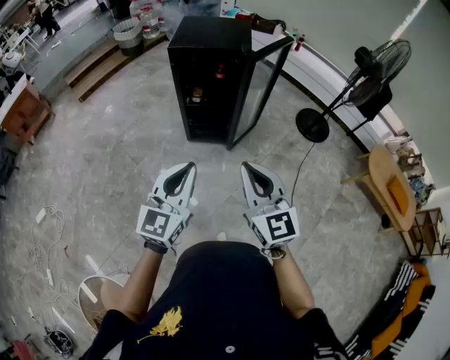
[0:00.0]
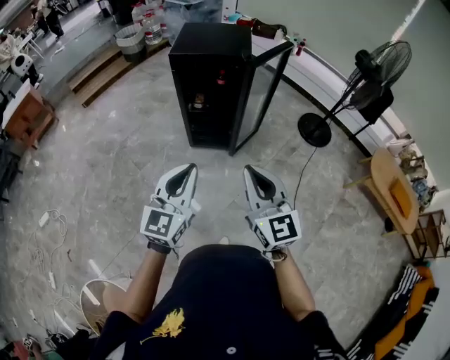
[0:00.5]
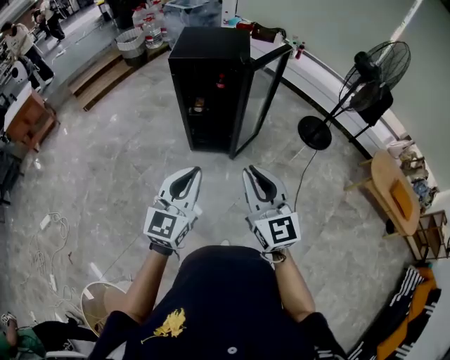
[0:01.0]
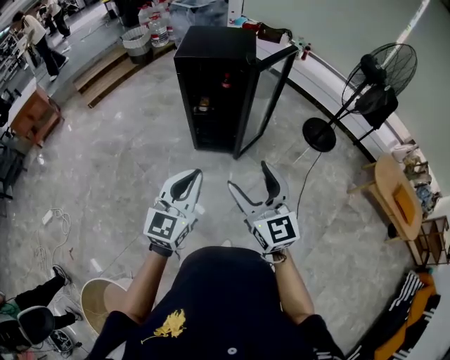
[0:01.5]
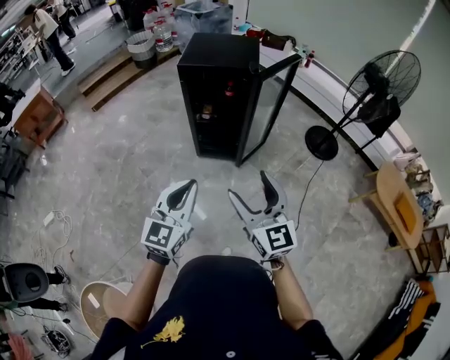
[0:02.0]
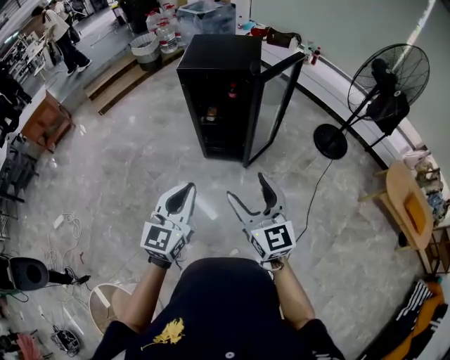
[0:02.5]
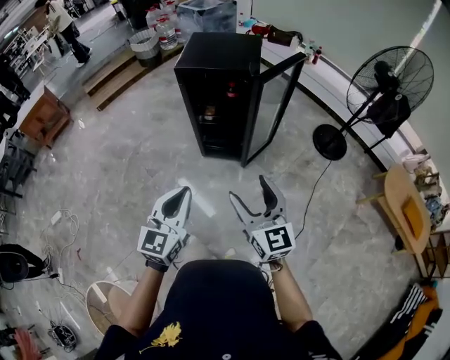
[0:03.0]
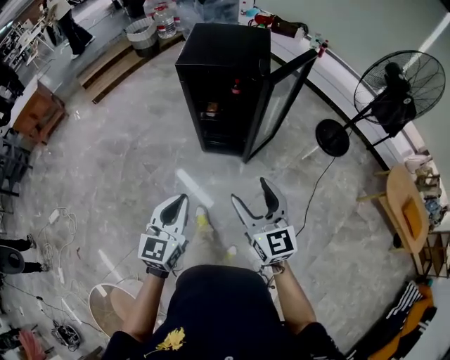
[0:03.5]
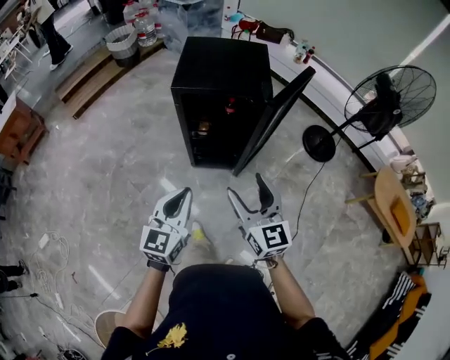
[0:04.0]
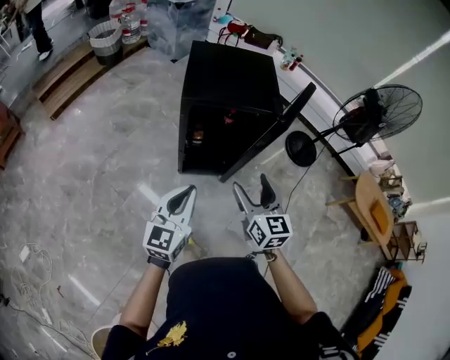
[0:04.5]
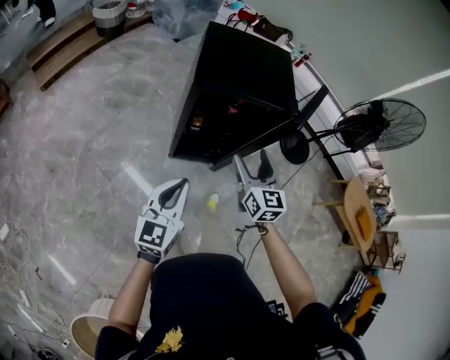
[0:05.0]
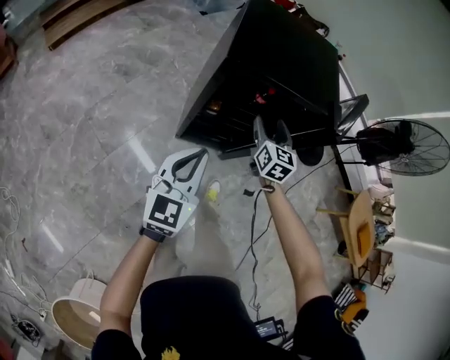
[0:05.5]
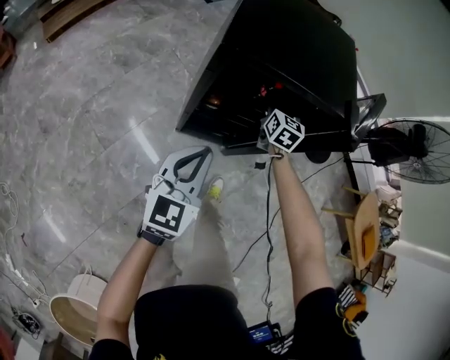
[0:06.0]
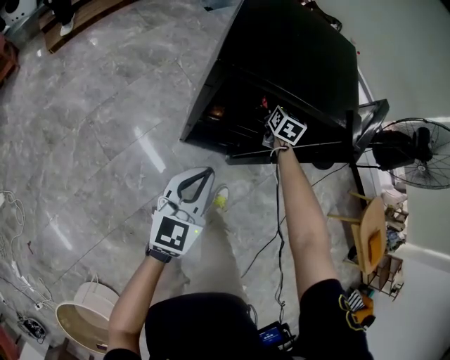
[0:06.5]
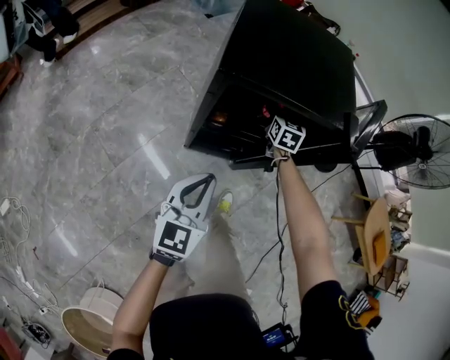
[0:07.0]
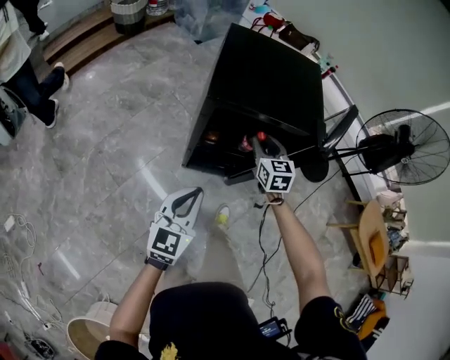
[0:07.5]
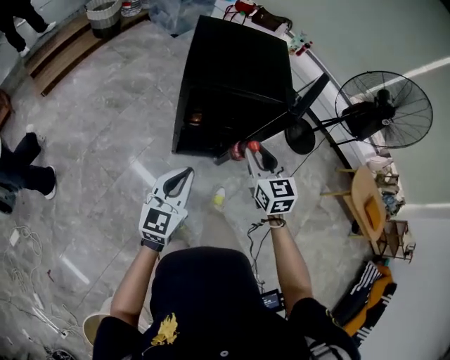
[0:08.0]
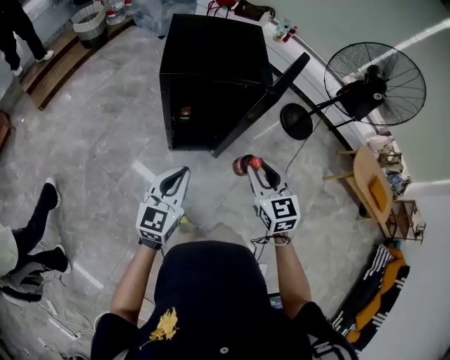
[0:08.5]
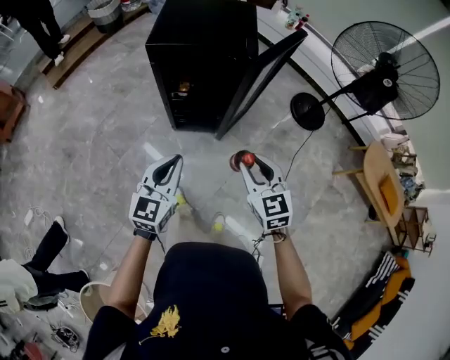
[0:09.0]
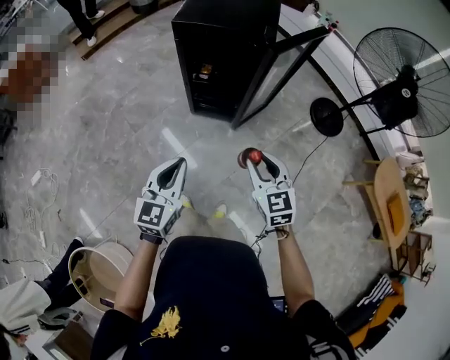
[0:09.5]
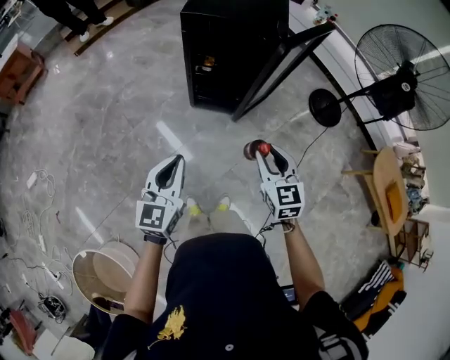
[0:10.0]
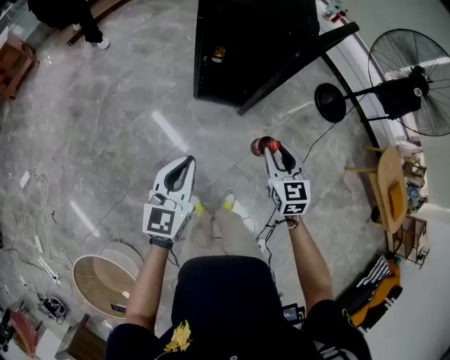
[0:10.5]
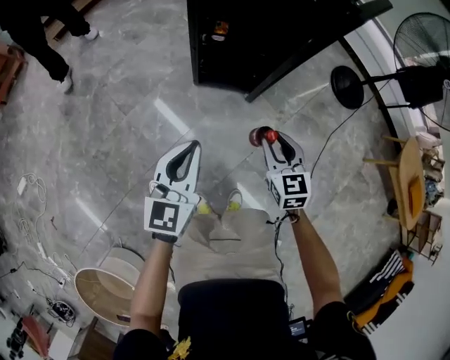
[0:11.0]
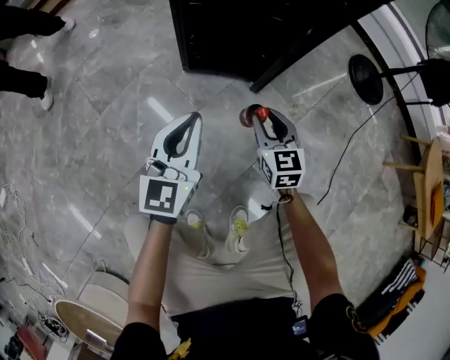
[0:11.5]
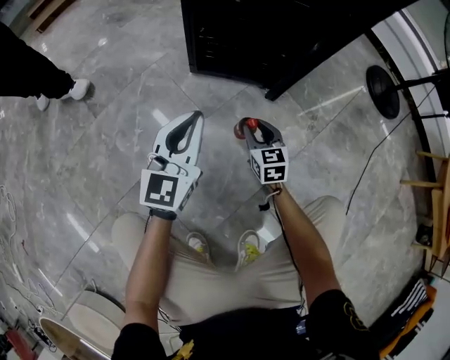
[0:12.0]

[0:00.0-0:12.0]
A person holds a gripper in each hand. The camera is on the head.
0:00.0 to 0:02.0: The right gripper opens.
0:02.0 to 0:04.0: Both grippers move forward, about 25 cm.
0:04.0 to 0:06.0: The left gripper moves forward and downward, roughly 30 cm. Meanwhile the right gripper heads forward and downward, covering approximately 50 cm, and swivels some 30 degrees.
0:06.0 to 0:08.0: The right gripper shifts roughly 35 cm backward and upward, and closes up, while the left gripper goes roughly 15 cm upward and backward.
0:08.0 to 0:10.0: The left gripper heads backward, covering about 25 cm, while the right gripper travels backward and to the right by about 30 cm.
0:10.0 to 0:12.0: The two grippers go roughly 70 cm downward.

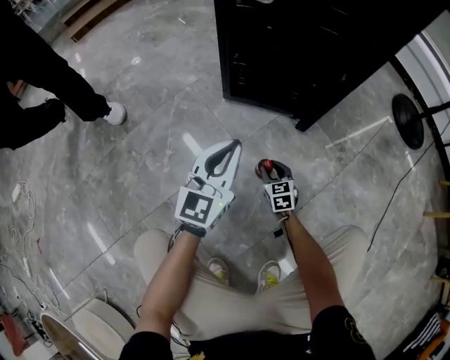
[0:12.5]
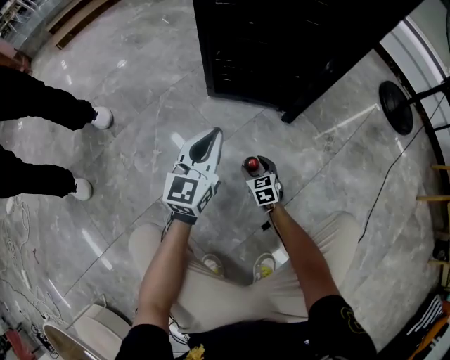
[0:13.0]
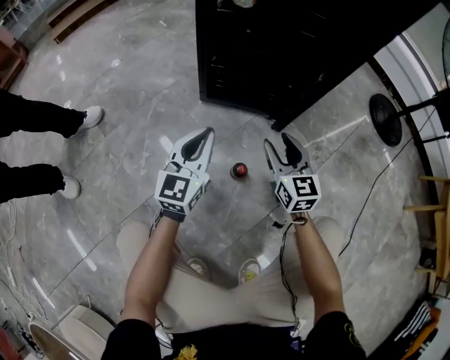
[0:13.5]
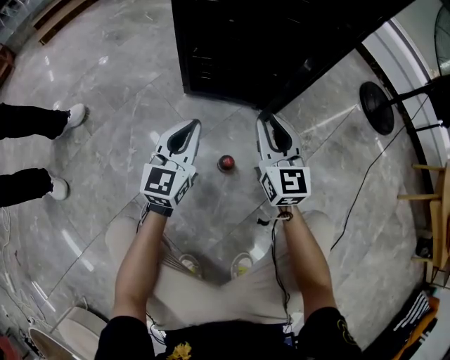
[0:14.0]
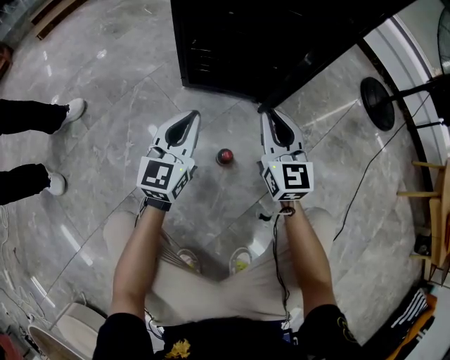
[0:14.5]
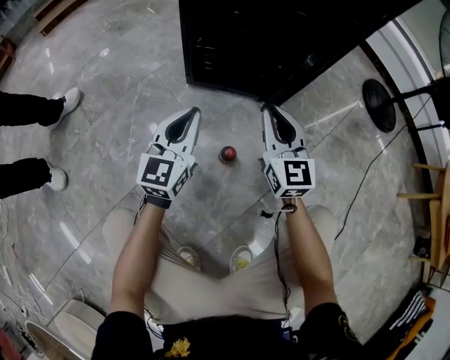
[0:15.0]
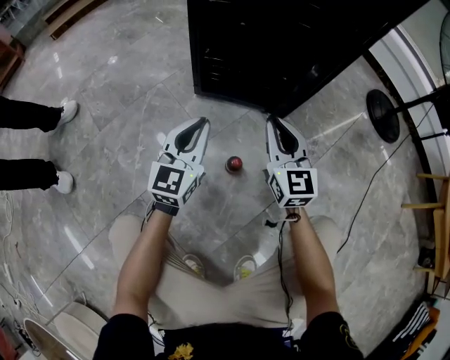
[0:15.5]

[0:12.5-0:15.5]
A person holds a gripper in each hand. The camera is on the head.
0:12.5 to 0:14.0: The right gripper moves upward, about 30 cm, tilts its fingers roughly 30 degrees upward, and opens and closes again.
0:14.0 to 0:15.5: The grippers make only small movements.

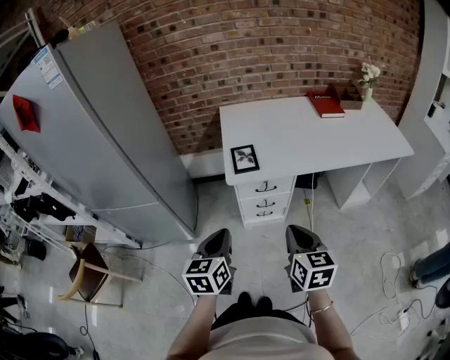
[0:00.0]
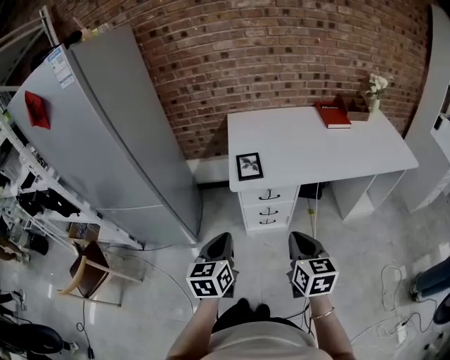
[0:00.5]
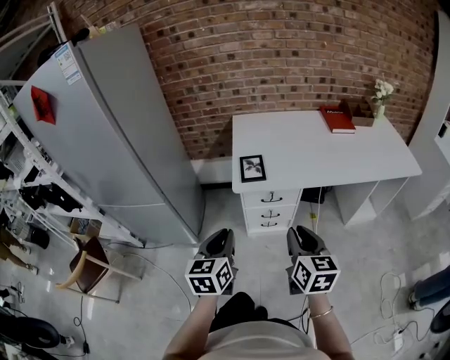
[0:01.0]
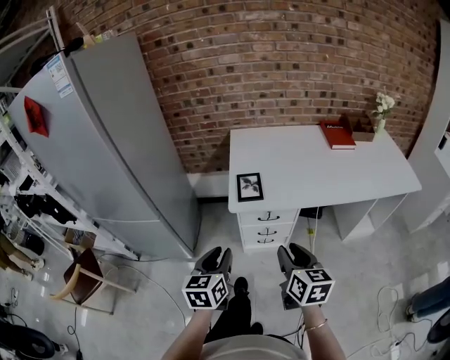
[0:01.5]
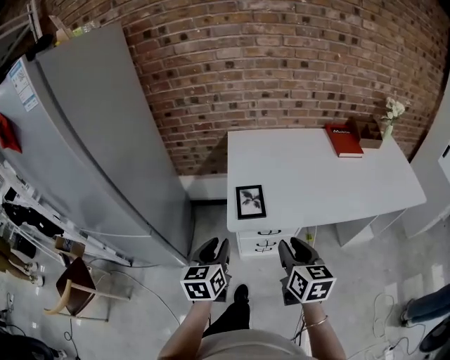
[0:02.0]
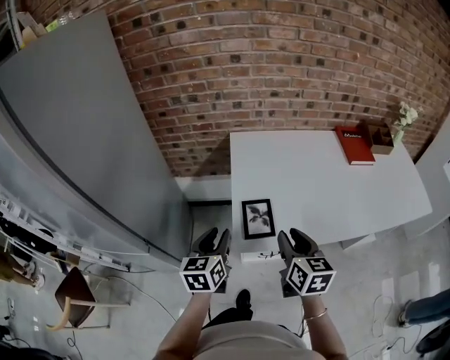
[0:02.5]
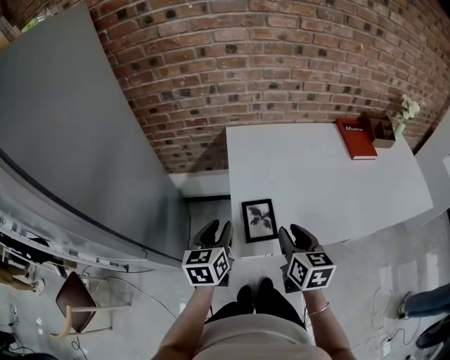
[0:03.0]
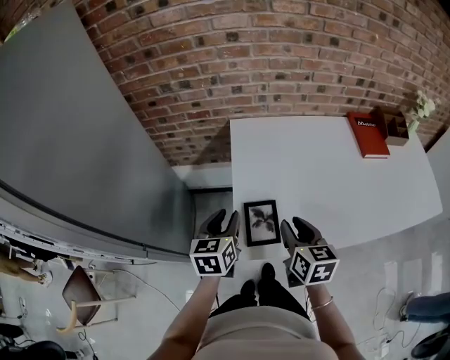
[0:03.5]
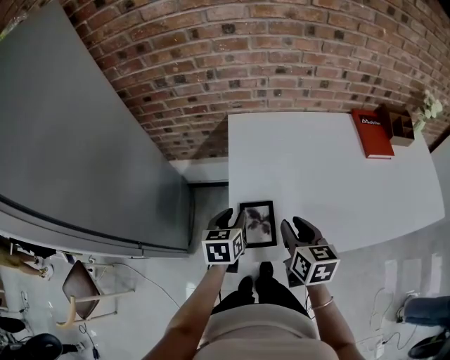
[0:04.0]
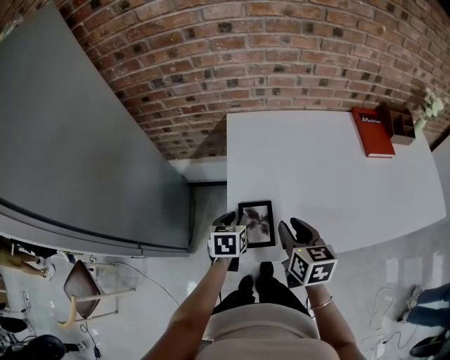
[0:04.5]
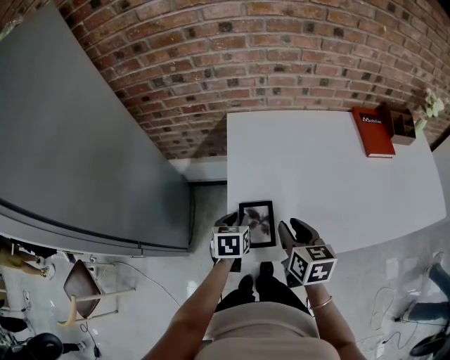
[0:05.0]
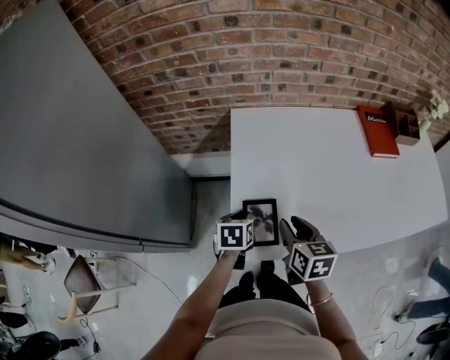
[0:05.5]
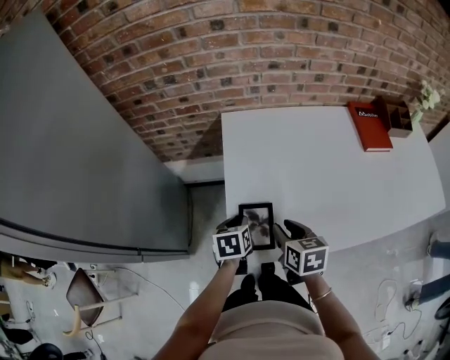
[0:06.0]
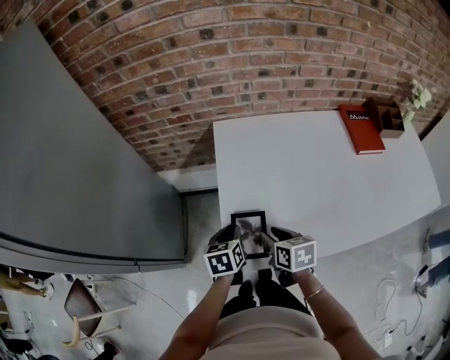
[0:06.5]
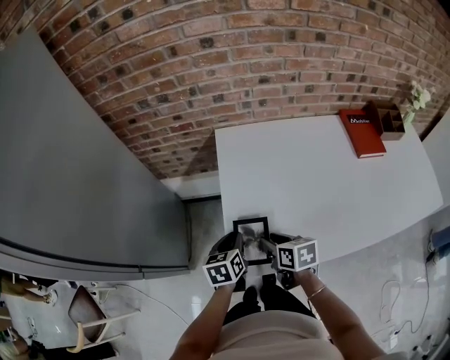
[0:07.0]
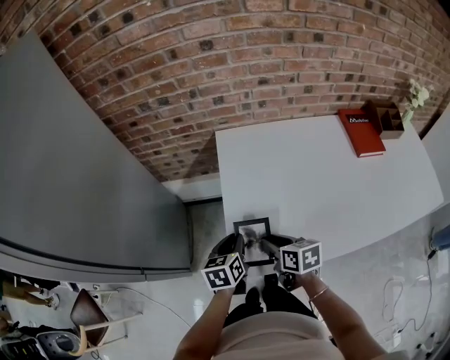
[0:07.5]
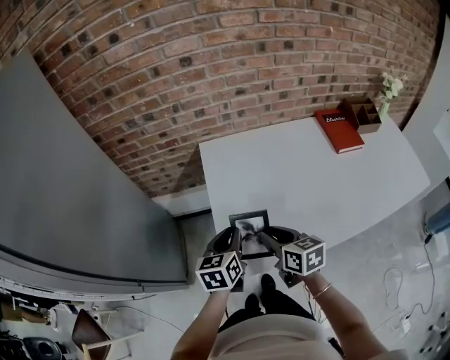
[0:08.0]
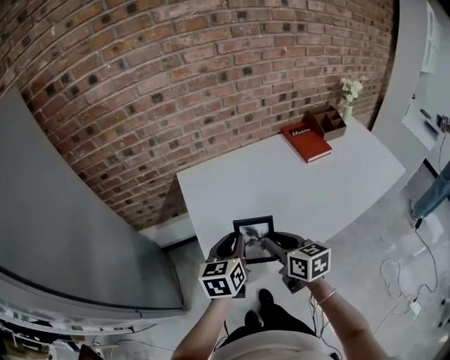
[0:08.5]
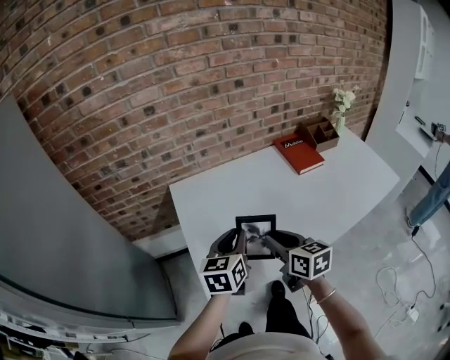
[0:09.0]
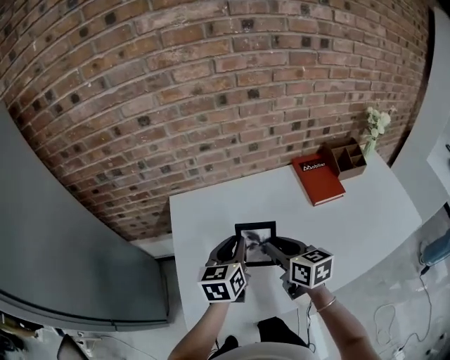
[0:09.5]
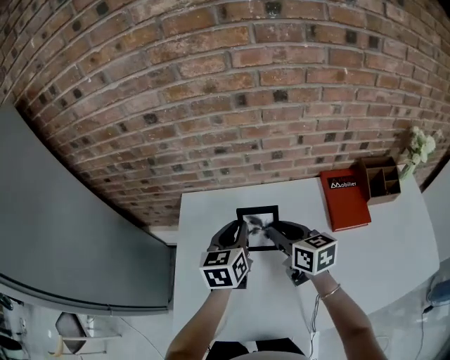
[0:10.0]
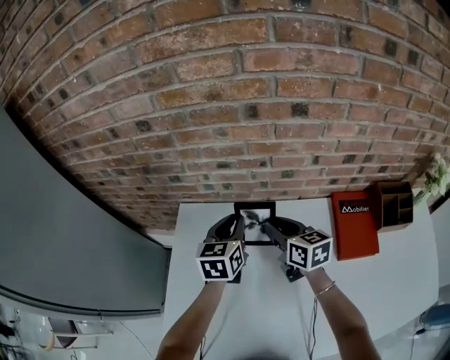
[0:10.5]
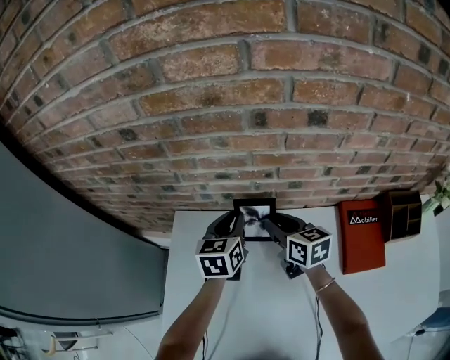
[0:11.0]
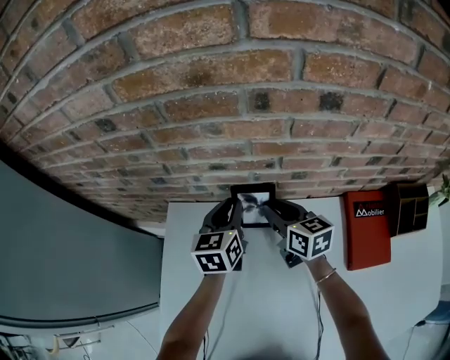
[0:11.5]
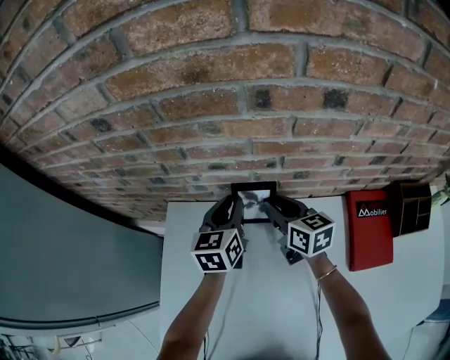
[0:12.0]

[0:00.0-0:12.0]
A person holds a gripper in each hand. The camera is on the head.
0:00.0 to 0:02.0: Both grippers travel together forward, roughly 15 cm. The right gripper opens. Meanwhile the left gripper opens.
0:02.0 to 0:04.0: The grippers both shift forward by approximately 25 cm.
0:04.0 to 0:06.0: The two grippers go approximately 5 cm downward.
0:06.0 to 0:08.0: The left gripper moves upward, about 10 cm, and turns by roughly 20 degrees.
0:08.0 to 0:10.0: Both grippers travel together forward and to the right, roughly 30 cm.
0:10.0 to 0:12.0: Both grippers travel together forward, some 20 cm.
